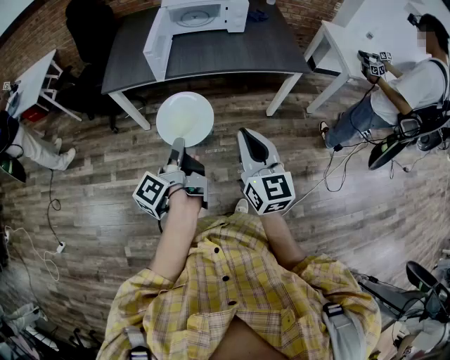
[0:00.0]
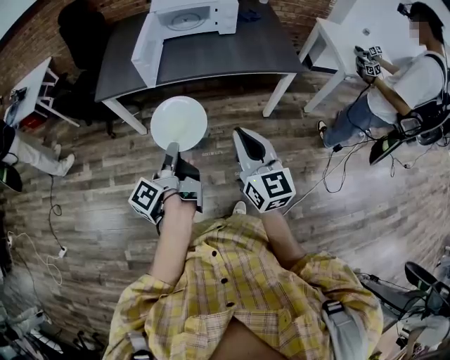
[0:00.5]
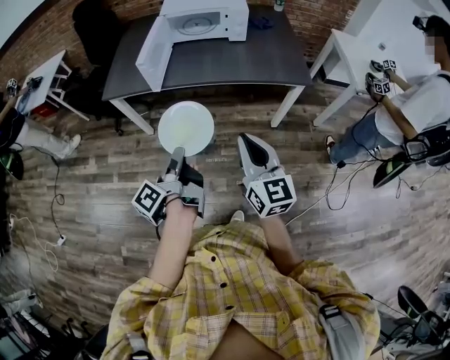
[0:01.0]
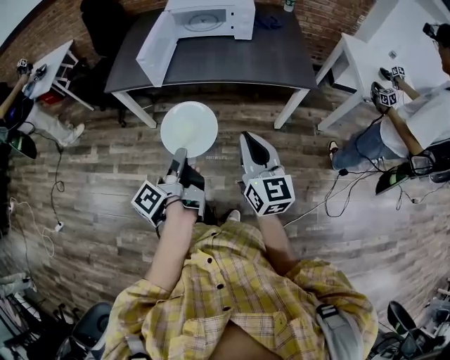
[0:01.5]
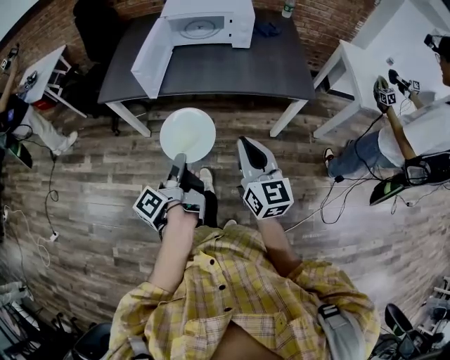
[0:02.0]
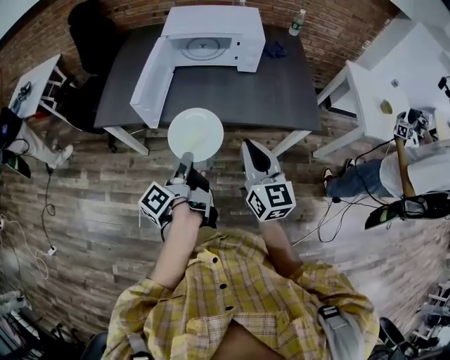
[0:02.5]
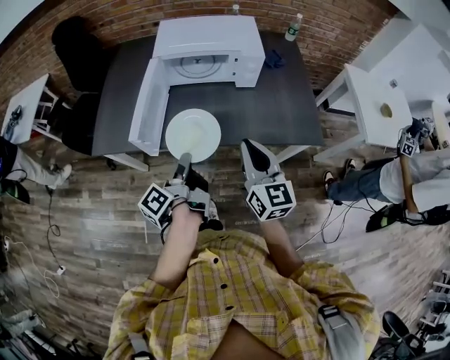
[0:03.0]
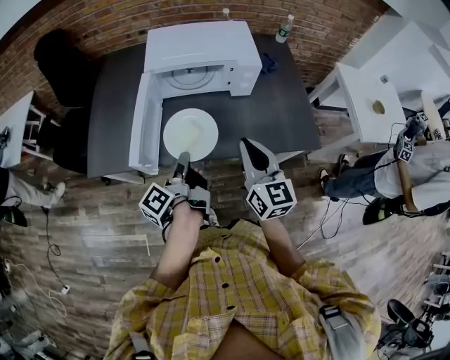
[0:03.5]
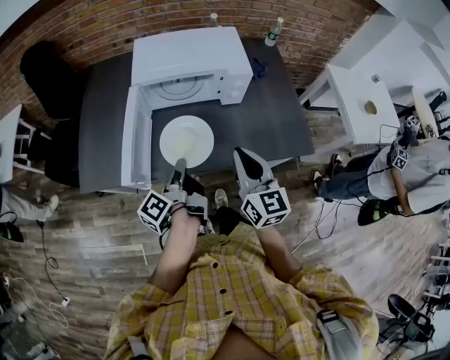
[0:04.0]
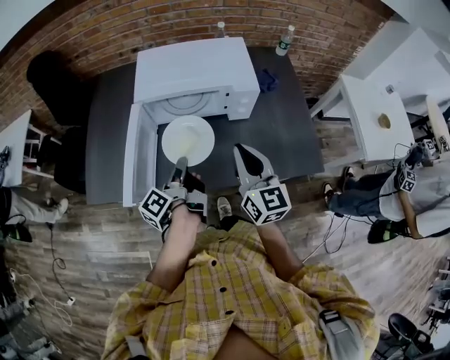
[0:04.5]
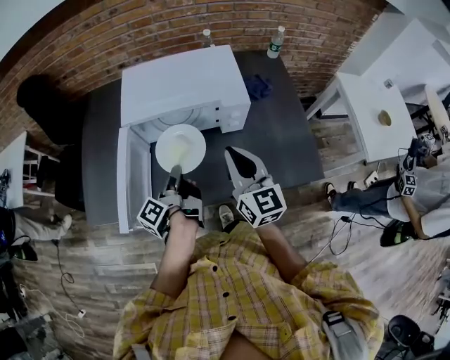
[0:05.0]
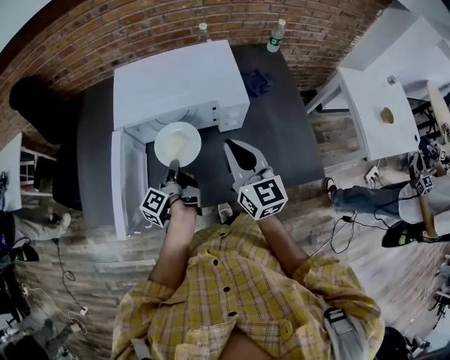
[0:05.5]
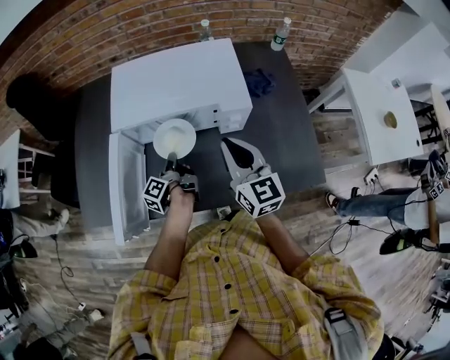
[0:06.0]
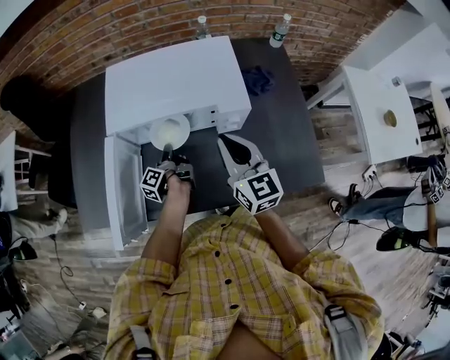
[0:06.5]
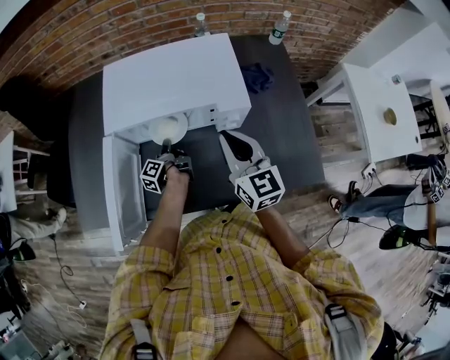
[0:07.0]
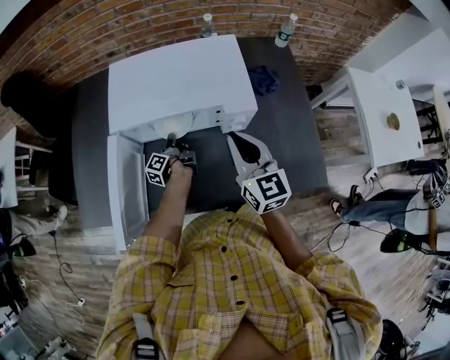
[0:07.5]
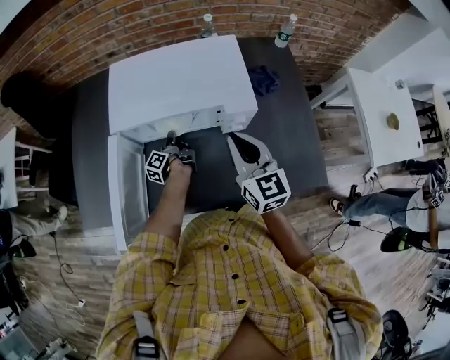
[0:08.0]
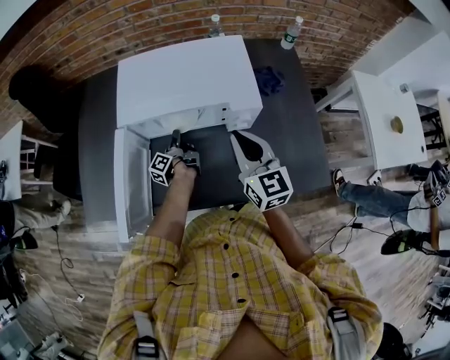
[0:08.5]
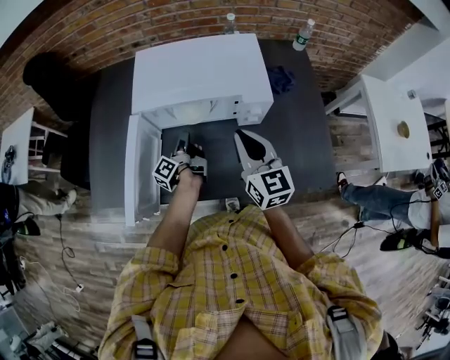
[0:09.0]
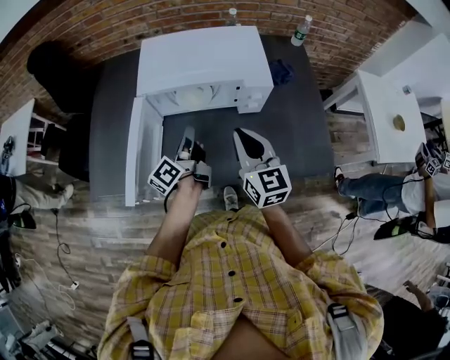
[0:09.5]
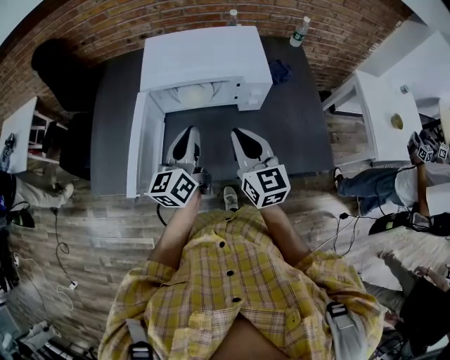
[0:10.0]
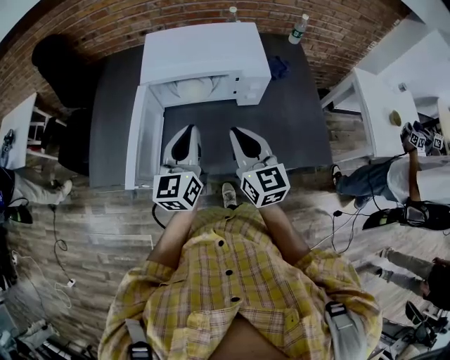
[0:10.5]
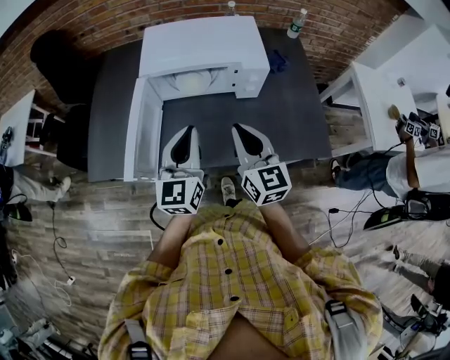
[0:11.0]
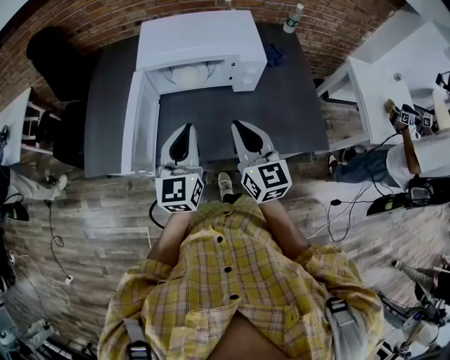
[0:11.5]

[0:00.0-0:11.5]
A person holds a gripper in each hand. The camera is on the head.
0:00.0 to 0:02.0: The right gripper changes place by approximately 15 cm.
0:02.0 to 0:04.0: The right gripper changes place by about 35 cm.
0:04.0 to 0:06.0: The right gripper shifts by roughly 20 cm.
0:07.5 to 0:09.5: The right gripper shifts by approximately 10 cm.
0:09.5 to 0:11.5: The right gripper shifts by some 10 cm.

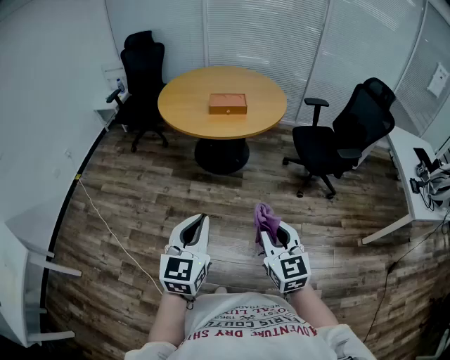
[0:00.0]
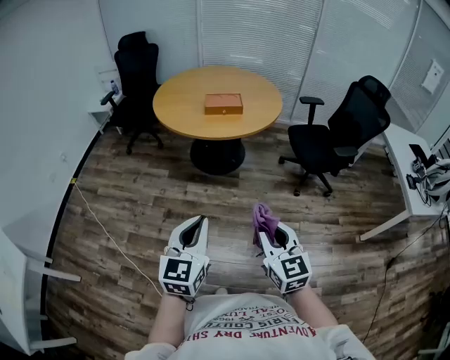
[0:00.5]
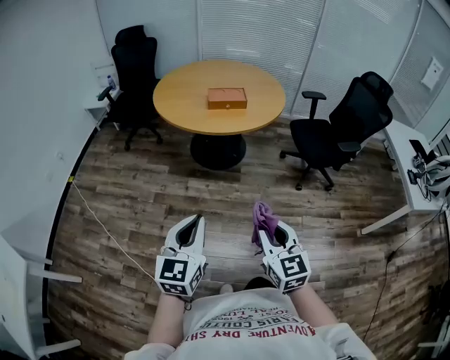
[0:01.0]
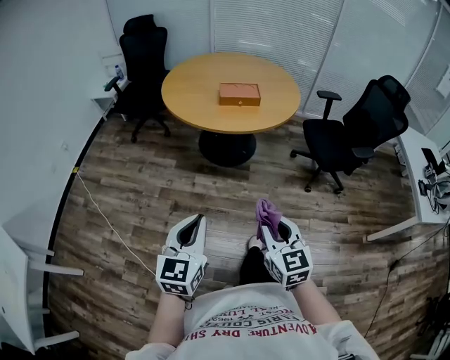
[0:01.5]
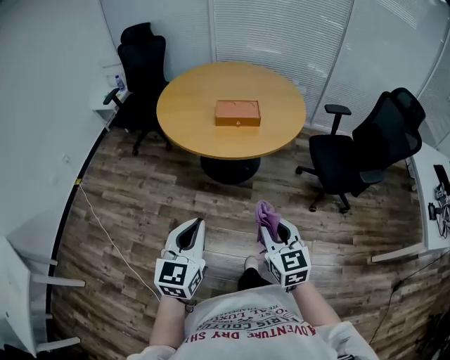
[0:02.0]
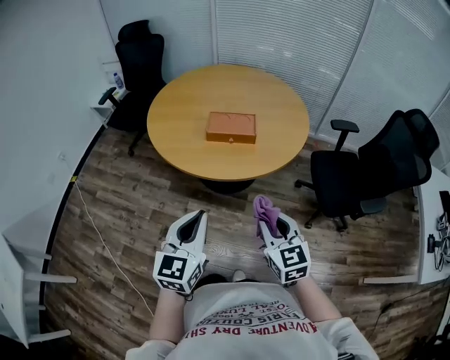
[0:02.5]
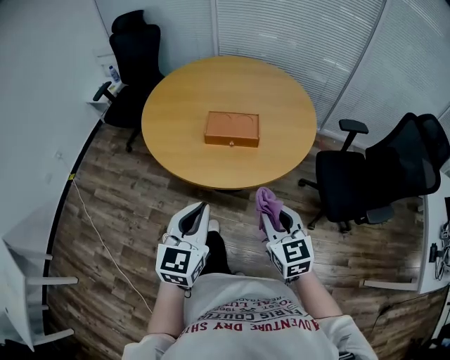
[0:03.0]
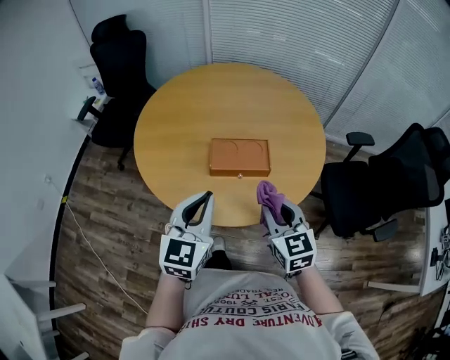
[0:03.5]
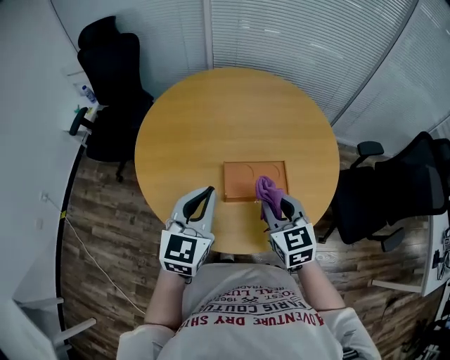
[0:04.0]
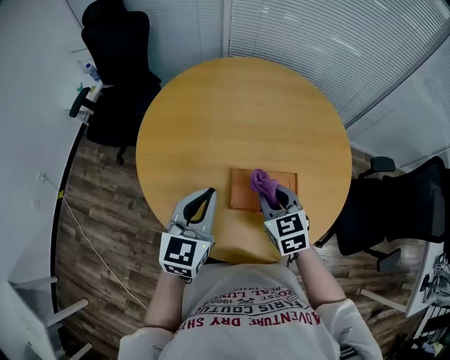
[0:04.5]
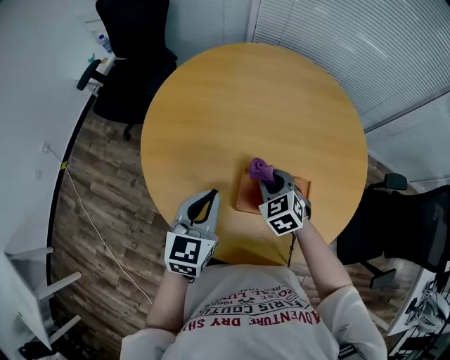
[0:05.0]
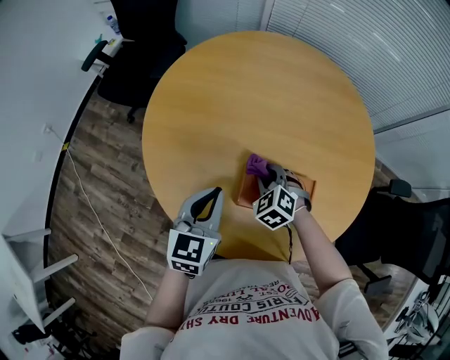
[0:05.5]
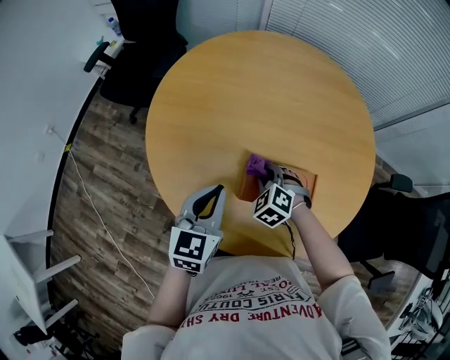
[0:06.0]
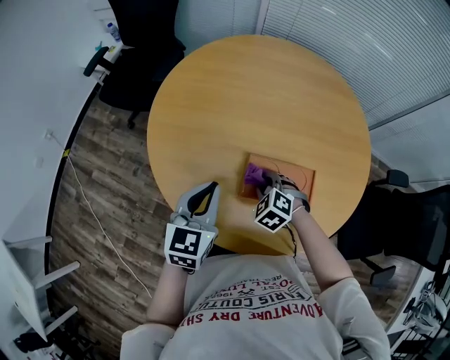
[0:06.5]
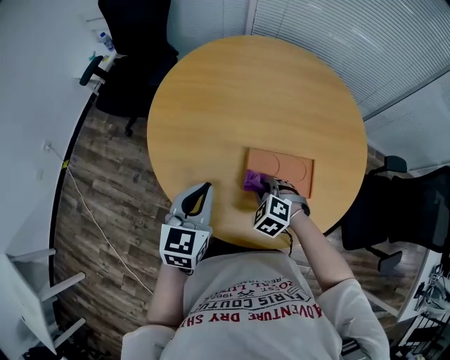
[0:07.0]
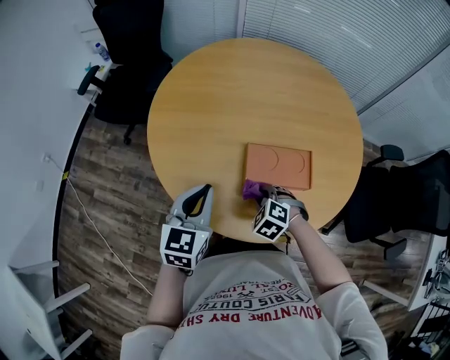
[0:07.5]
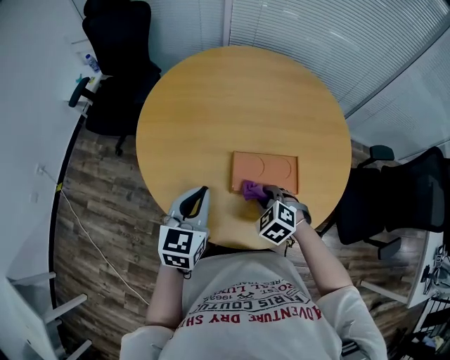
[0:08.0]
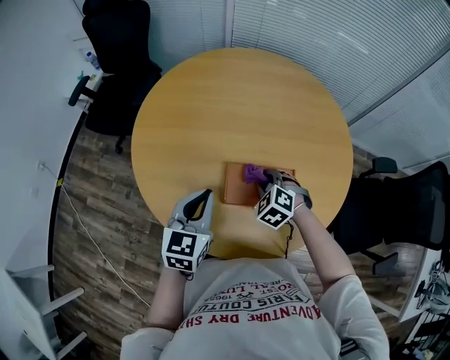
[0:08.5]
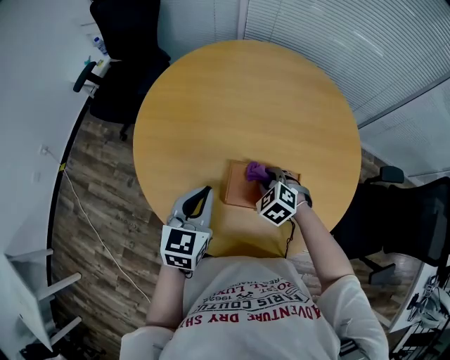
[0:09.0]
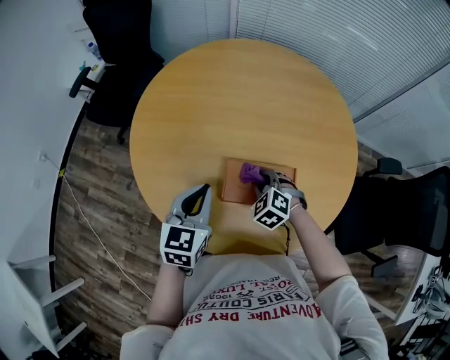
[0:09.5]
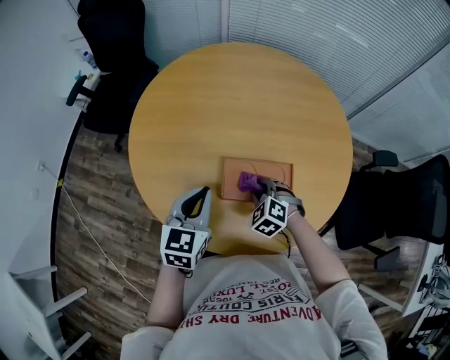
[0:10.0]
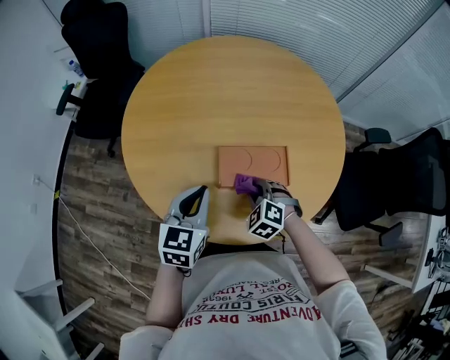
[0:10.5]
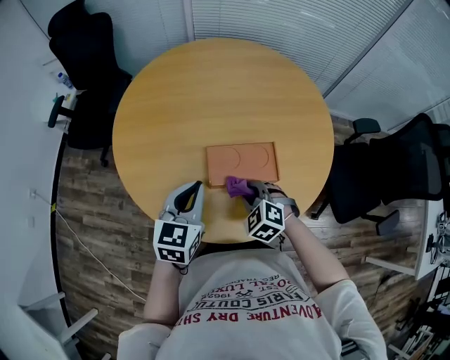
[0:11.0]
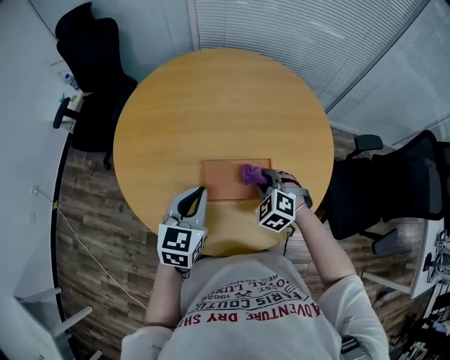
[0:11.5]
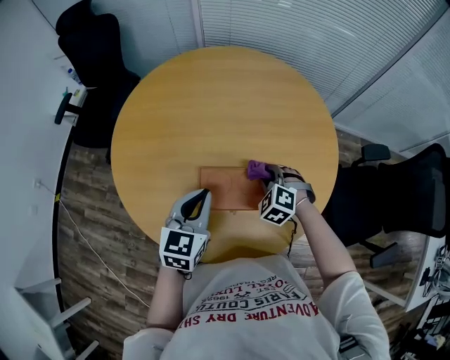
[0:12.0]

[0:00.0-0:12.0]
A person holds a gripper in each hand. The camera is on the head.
0:00.0 to 0:02.0: Both grippers travel together forward, some 25 cm.
0:02.0 to 0:04.0: The two grippers travel together, forward, approximately 60 cm.
0:04.0 to 0:06.0: The right gripper moves downward and forward, approximately 25 cm, and points its fingers about 30 degrees further downward; the left gripper shifts about 15 cm downward and forward, and turns by some 20 degrees.
0:06.0 to 0:08.0: The left gripper changes place by about 5 cm. The right gripper shifts about 10 cm backward.
0:08.0 to 0:10.0: The right gripper shifts roughly 5 cm forward; the left gripper ends up some 5 cm from where it was.
0:10.0 to 0:12.0: The left gripper moves to the right, some 10 cm; the right gripper moves to the right and forward, some 15 cm.

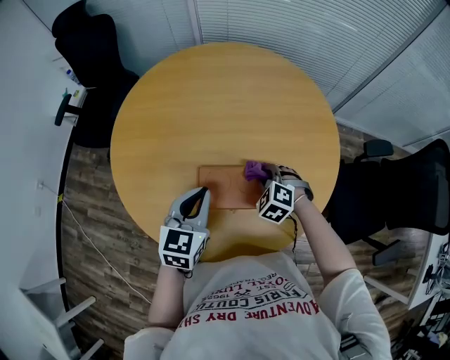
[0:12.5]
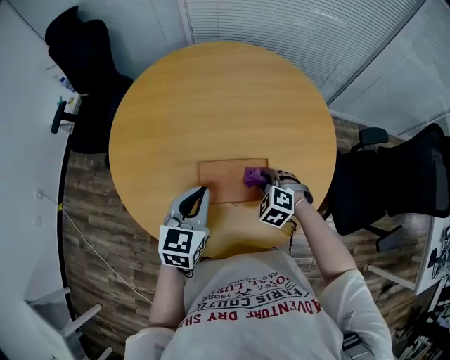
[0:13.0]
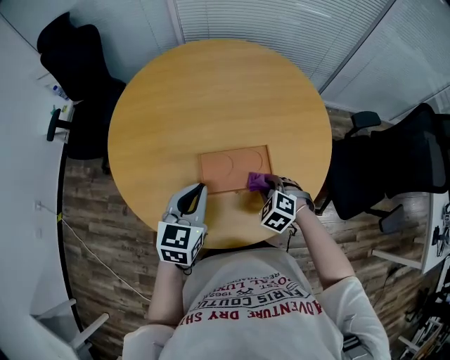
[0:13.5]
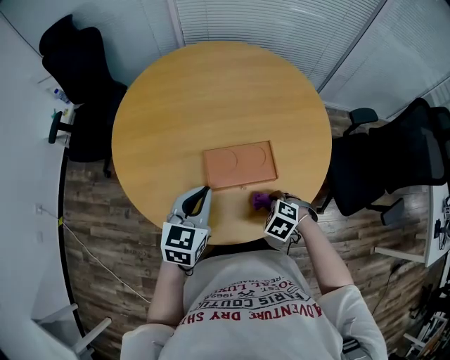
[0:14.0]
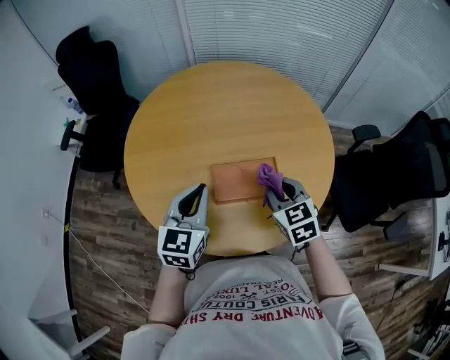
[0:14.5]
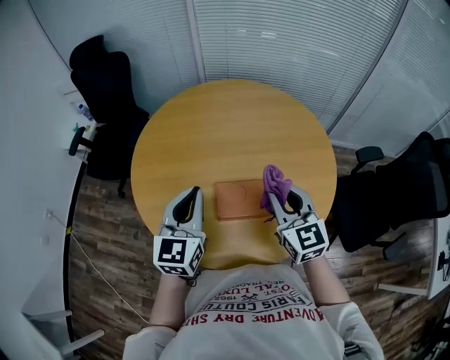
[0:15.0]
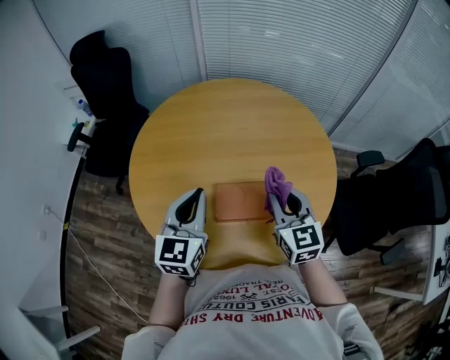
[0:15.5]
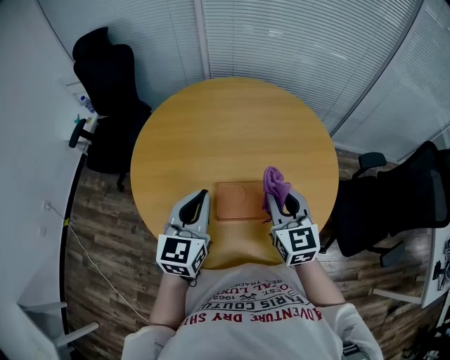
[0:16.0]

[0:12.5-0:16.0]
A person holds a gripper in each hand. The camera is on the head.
0:12.5 to 0:14.5: The right gripper heads upward and backward, covering approximately 20 cm, and rotates around the line of its fingers by some 40 degrees, clockwise from behind. Meanwhile the left gripper heads upward, backward and to the left, covering about 10 cm.
0:14.5 to 0:16.0: The right gripper is displaced upward by roughly 10 cm, and swivels roughly 20 degrees.
